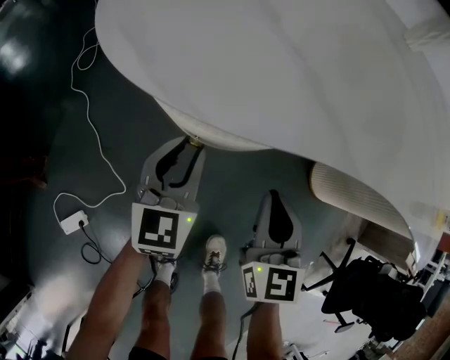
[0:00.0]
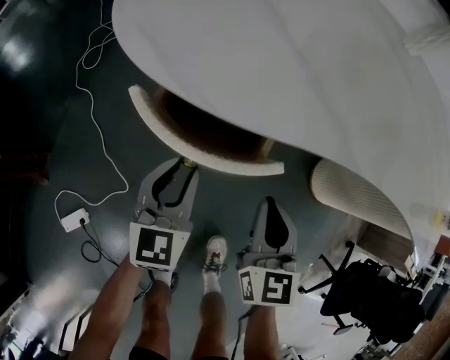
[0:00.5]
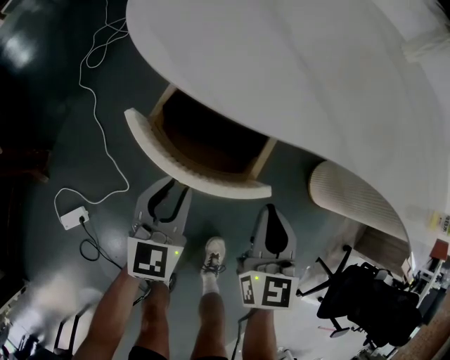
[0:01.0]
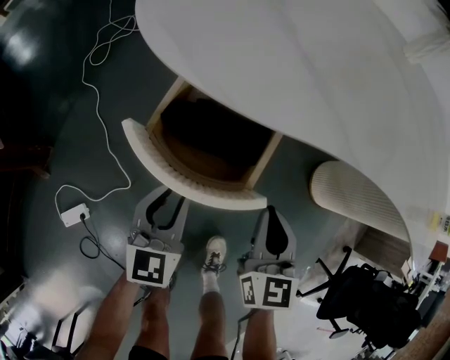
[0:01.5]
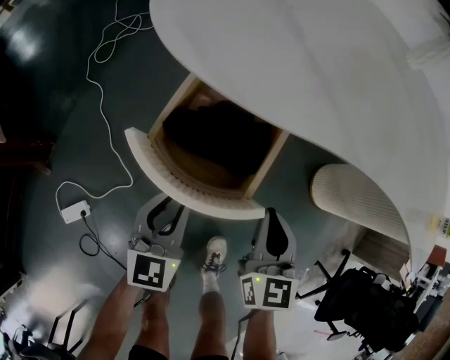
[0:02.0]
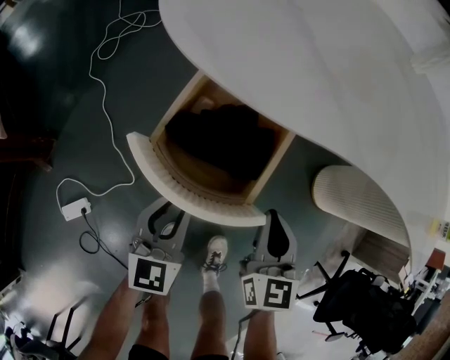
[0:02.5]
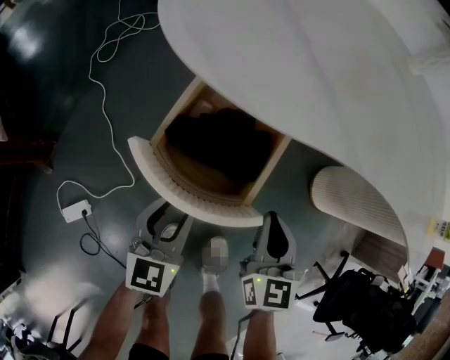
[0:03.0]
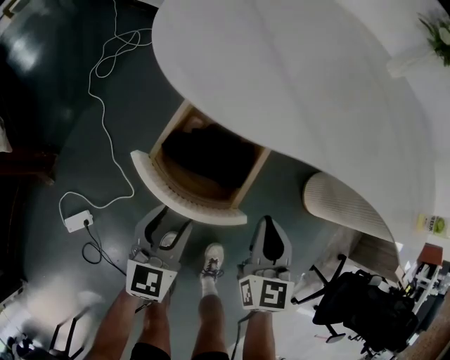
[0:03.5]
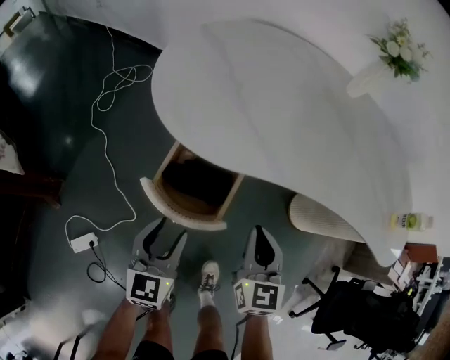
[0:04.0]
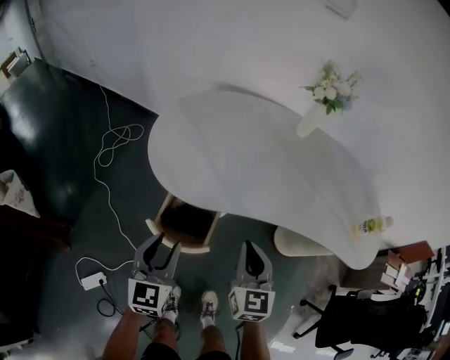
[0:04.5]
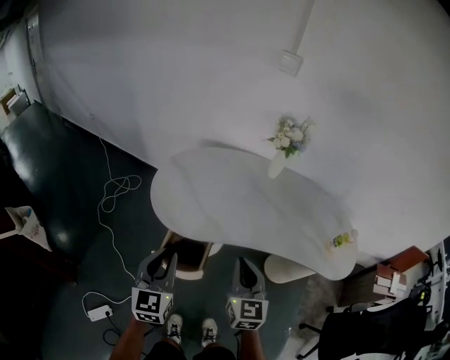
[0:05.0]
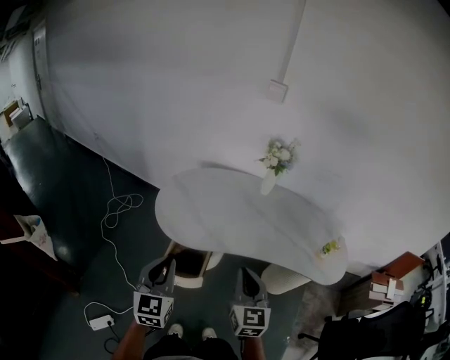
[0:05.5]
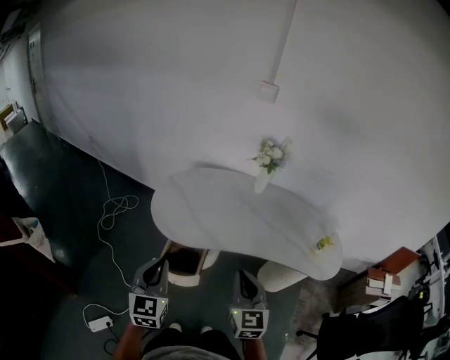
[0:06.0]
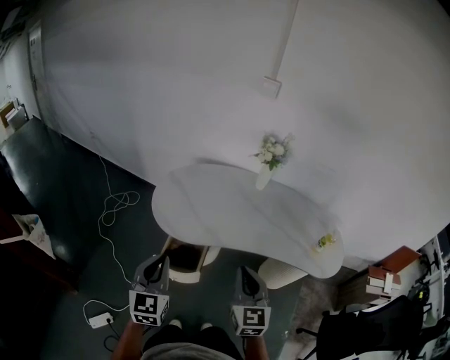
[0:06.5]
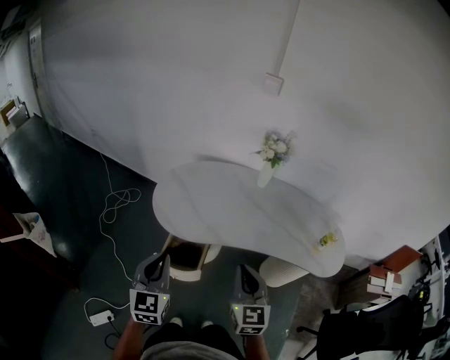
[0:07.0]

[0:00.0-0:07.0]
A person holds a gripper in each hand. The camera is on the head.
0:00.0 to 0:02.0: The left gripper travels backward by approximately 15 cm; the right gripper is displaced backward by roughly 5 cm.
0:02.0 to 0:03.5: The left gripper opens up.
0:03.5 to 0:05.0: The grippers both shift upward by about 40 cm. The left gripper closes its fingers.
0:05.0 to 0:07.0: The two grippers go about 10 cm upward and backward.

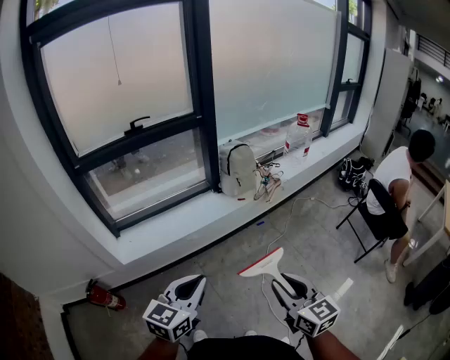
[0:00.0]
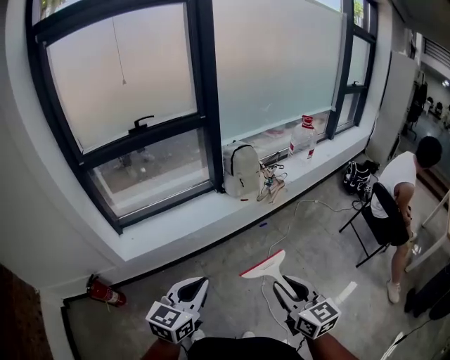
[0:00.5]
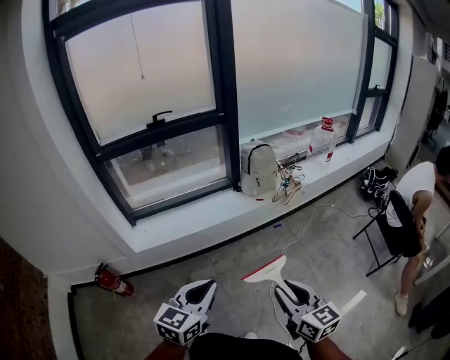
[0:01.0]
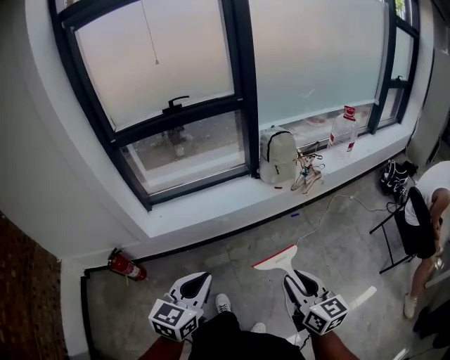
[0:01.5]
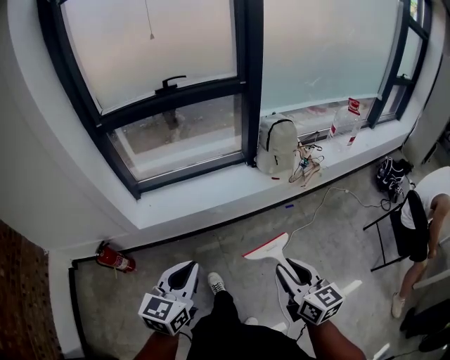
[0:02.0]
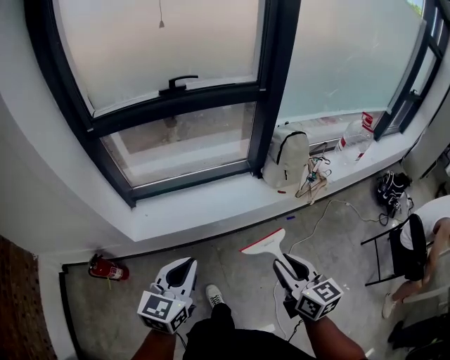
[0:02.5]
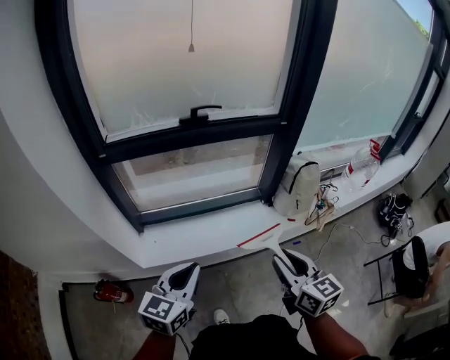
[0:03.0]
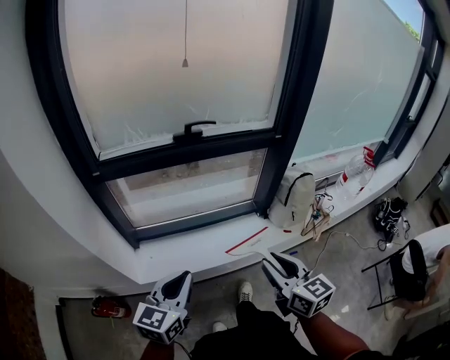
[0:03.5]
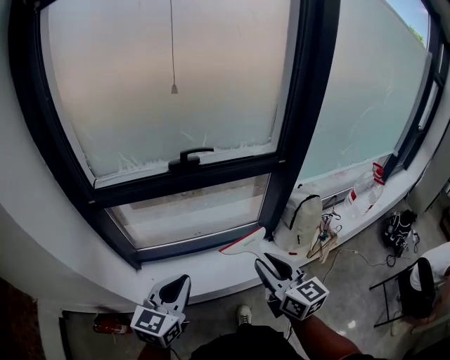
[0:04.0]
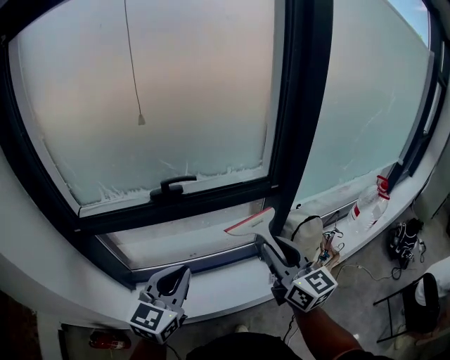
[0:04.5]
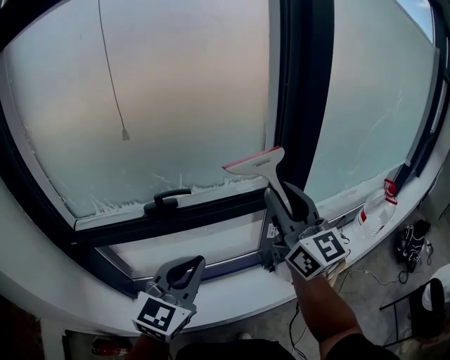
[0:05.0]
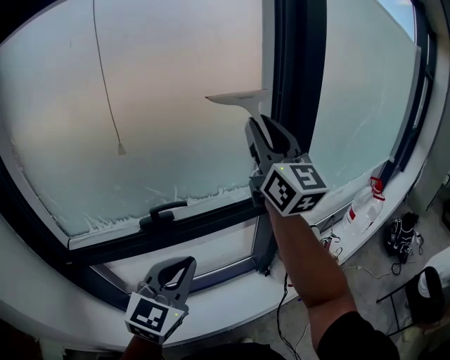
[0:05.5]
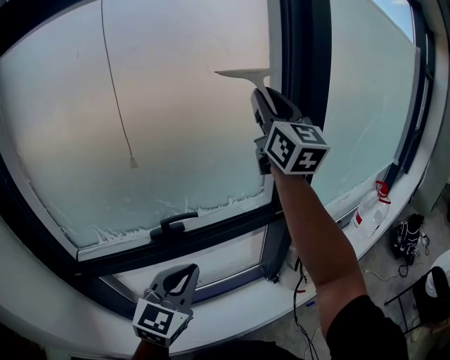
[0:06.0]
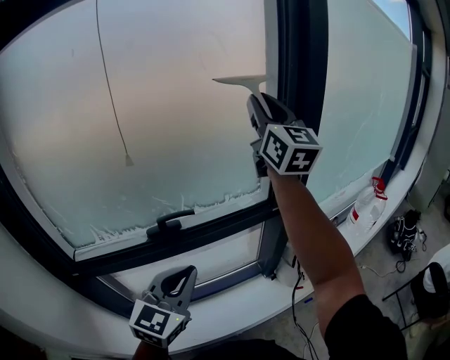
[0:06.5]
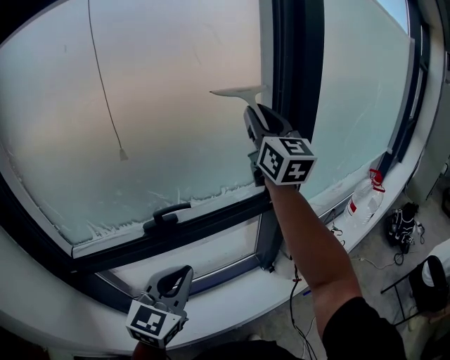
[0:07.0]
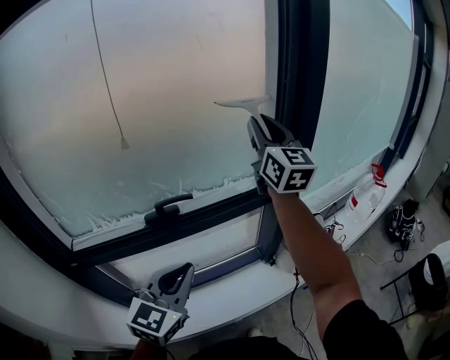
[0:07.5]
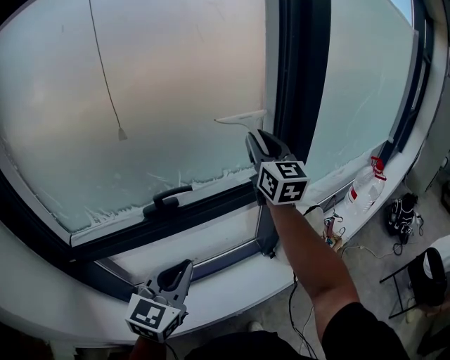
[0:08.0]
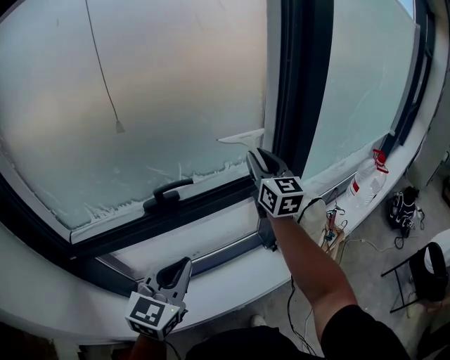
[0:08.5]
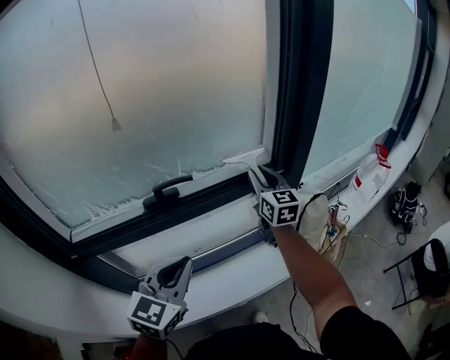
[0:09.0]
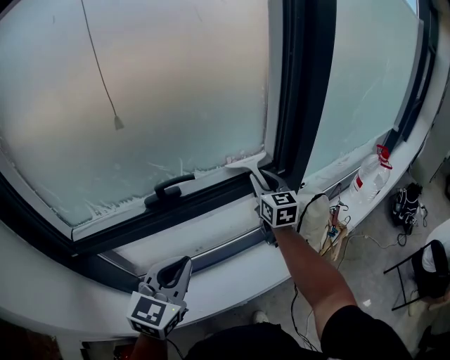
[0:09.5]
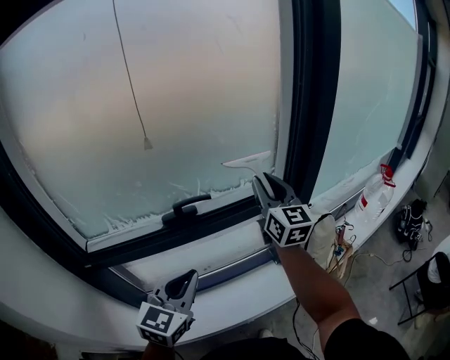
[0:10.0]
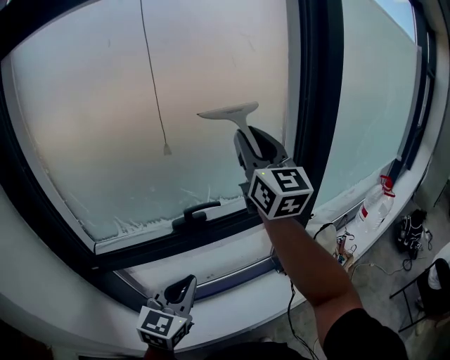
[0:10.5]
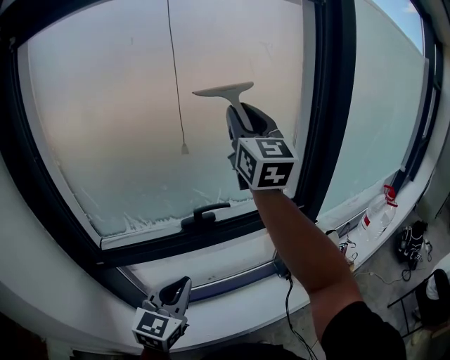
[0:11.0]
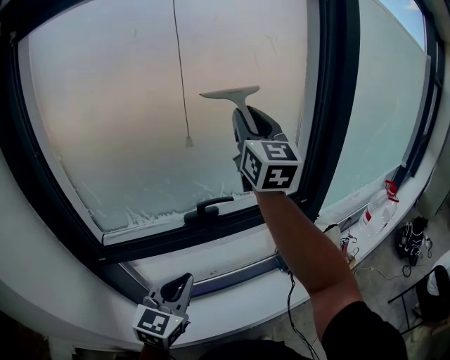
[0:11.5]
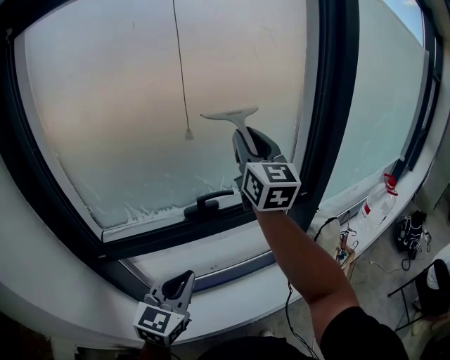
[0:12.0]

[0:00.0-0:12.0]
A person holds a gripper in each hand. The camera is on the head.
0:00.0 to 0:02.0: The left gripper travels to the left and forward by about 10 cm, and changes its angle by approximately 20 degrees; the right gripper heads forward and downward, covering approximately 10 cm.
0:02.0 to 0:04.0: The pair of grippers is taken forward, some 50 cm.
0:04.0 to 0:06.0: The right gripper goes approximately 60 cm upward and forward, and angles its fingers upward, by some 40 degrees; the left gripper travels forward and upward by some 25 cm, and rotates some 20 degrees.
0:06.0 to 0:08.0: The left gripper ends up approximately 5 cm from where it was. Meanwhile the right gripper goes about 20 cm downward.
0:08.0 to 0:10.0: The right gripper is displaced backward by approximately 5 cm, and goes downward and returns, approximately 20 cm each way.
0:10.0 to 0:12.0: The left gripper moves to the left, about 5 cm. The right gripper goes about 20 cm upward and to the left.

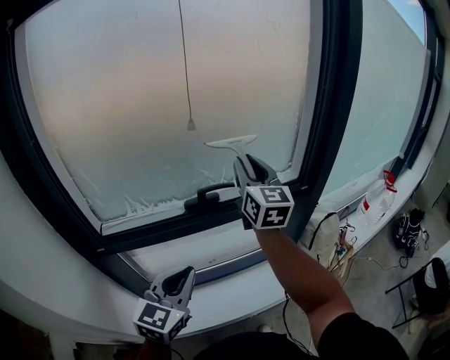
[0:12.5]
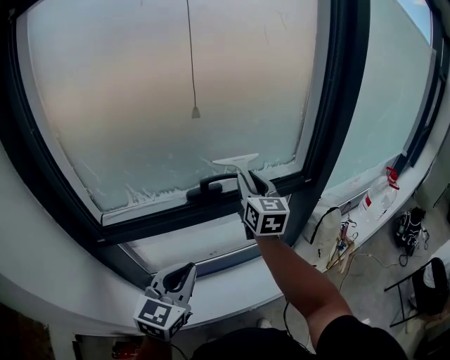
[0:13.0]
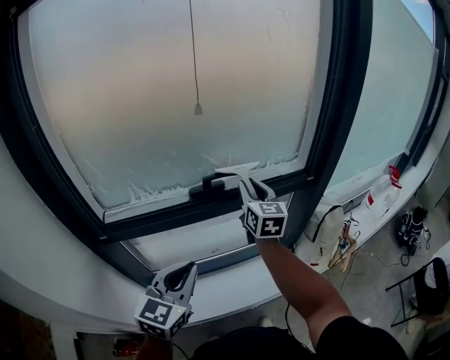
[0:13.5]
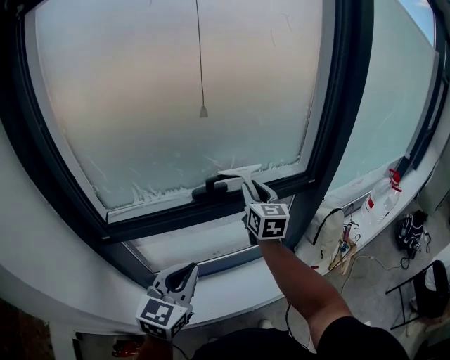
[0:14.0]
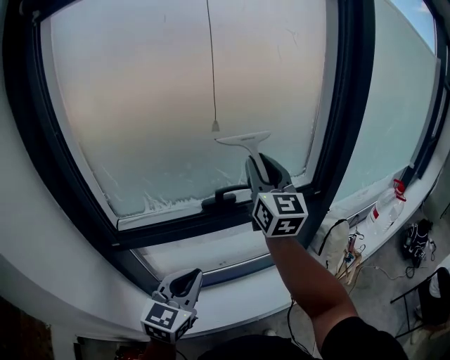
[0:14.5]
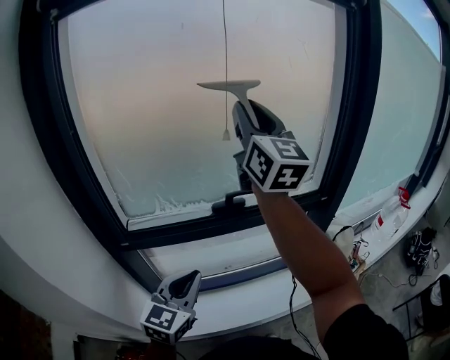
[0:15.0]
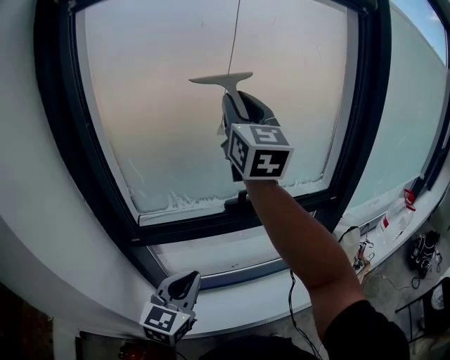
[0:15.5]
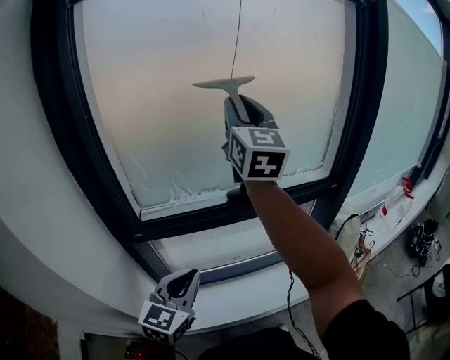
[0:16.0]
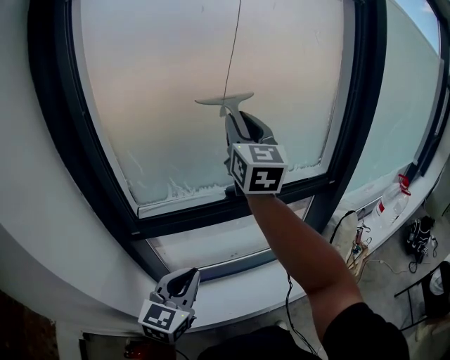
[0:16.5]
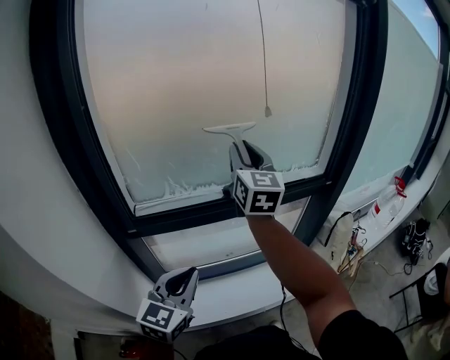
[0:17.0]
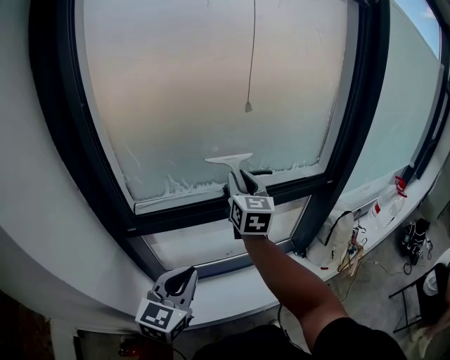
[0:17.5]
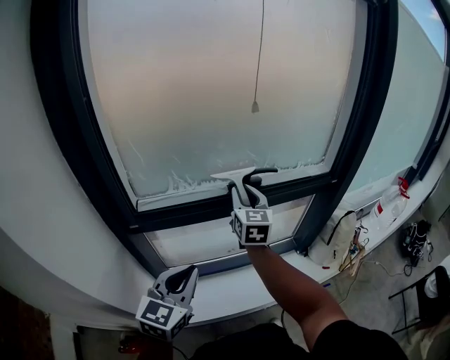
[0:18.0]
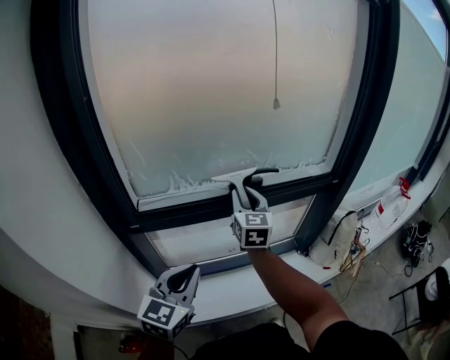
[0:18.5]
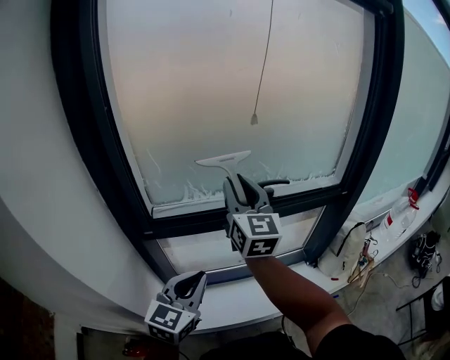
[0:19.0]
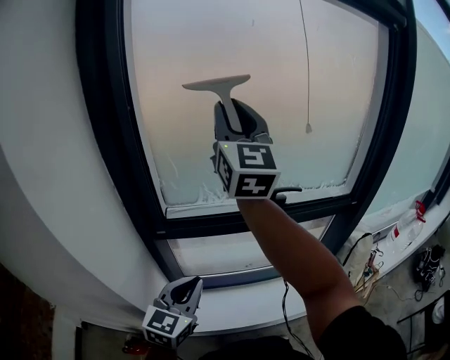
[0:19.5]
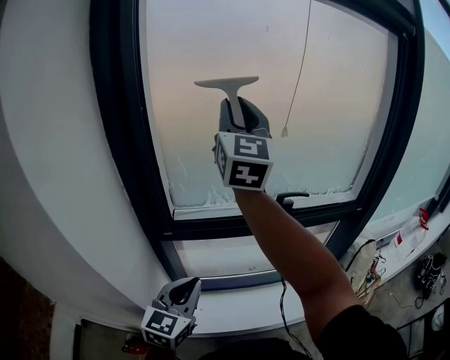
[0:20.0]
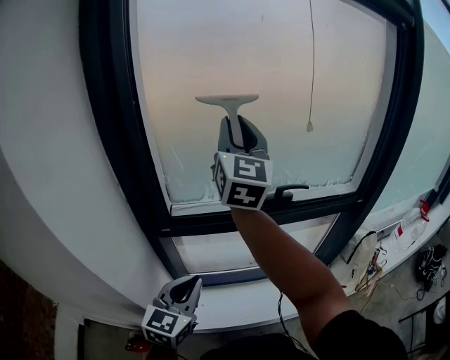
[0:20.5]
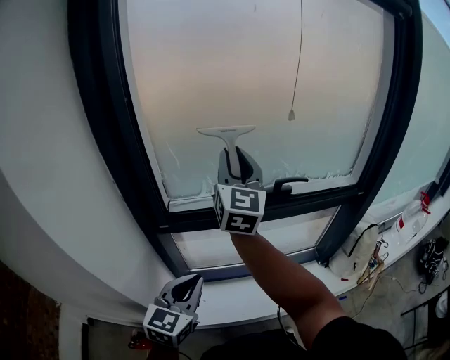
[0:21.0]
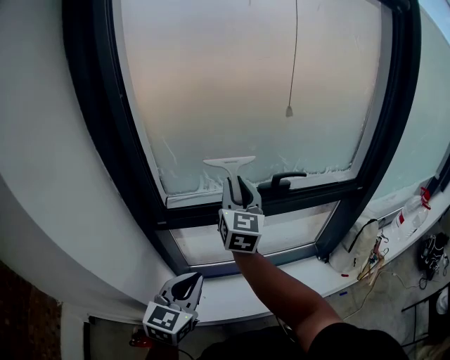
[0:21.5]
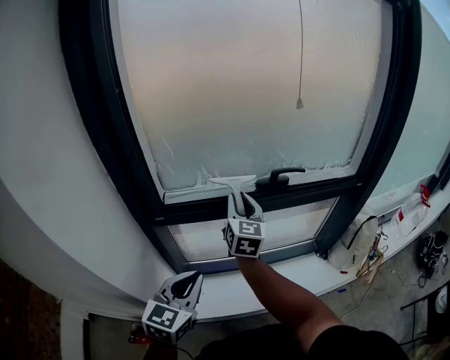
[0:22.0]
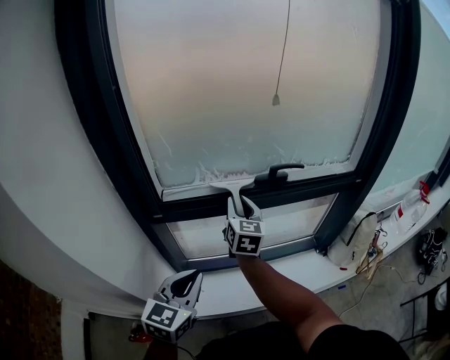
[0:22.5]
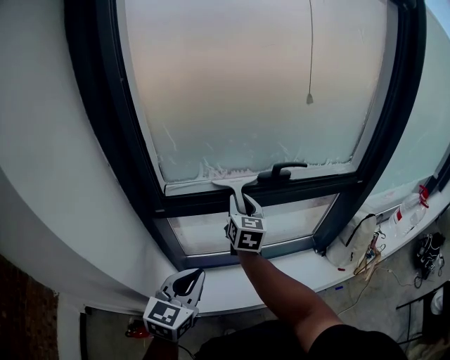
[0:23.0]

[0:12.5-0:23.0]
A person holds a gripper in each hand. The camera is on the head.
0:12.5 to 0:14.5: The right gripper moves roughly 15 cm downward and comes back.
0:14.5 to 0:16.5: The right gripper shifts about 15 cm to the left and upward; the left gripper travels to the left by some 10 cm.
0:16.5 to 0:19.0: The right gripper is displaced downward, backward and to the left by some 15 cm.
0:19.0 to 0:21.0: The right gripper travels to the left by about 5 cm, and reaches approximately 20 cm upward, then returns. Meanwhile the left gripper shifts by roughly 5 cm.
0:21.0 to 0:23.0: The right gripper goes roughly 25 cm downward, and changes its angle by some 30 degrees.
